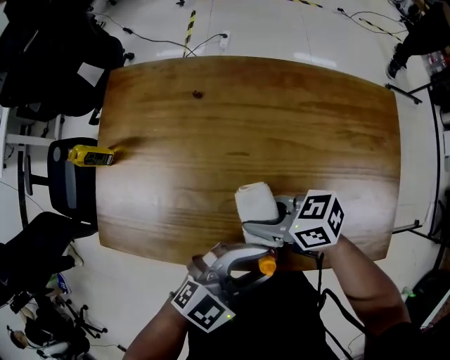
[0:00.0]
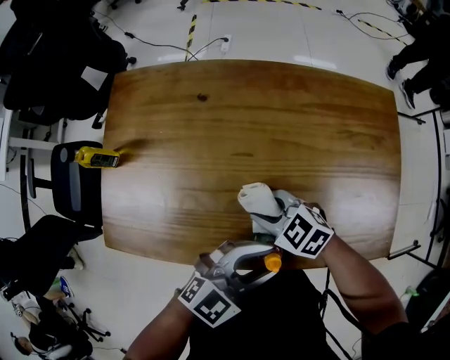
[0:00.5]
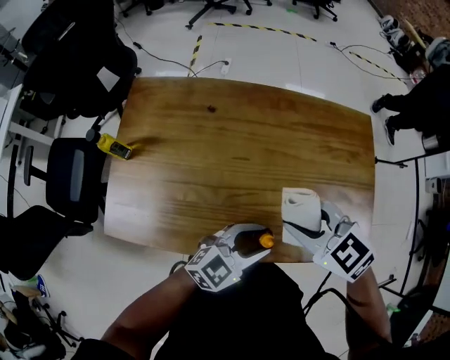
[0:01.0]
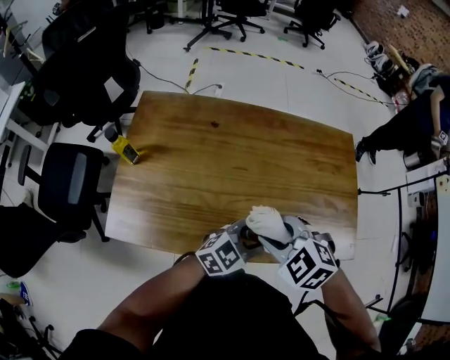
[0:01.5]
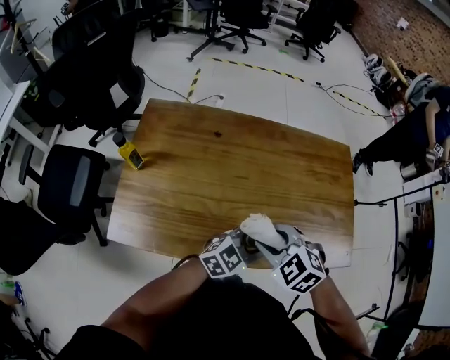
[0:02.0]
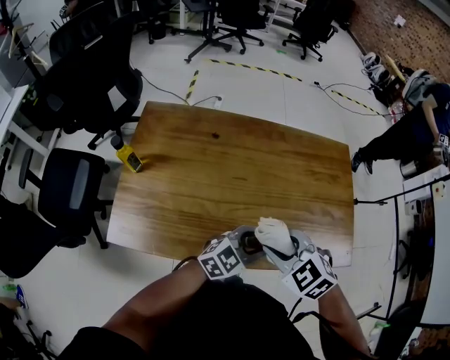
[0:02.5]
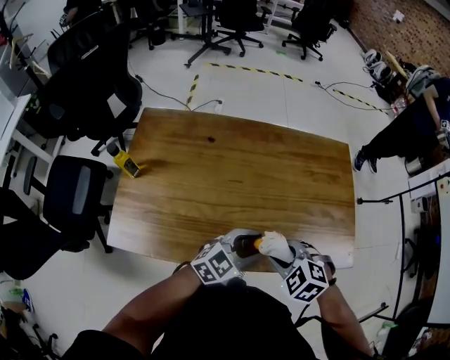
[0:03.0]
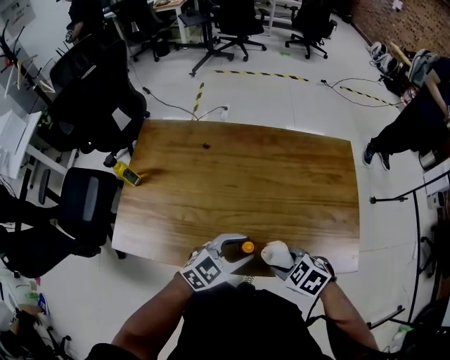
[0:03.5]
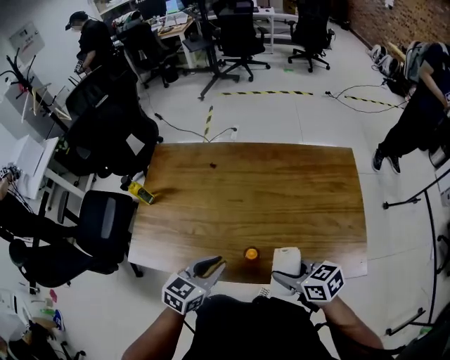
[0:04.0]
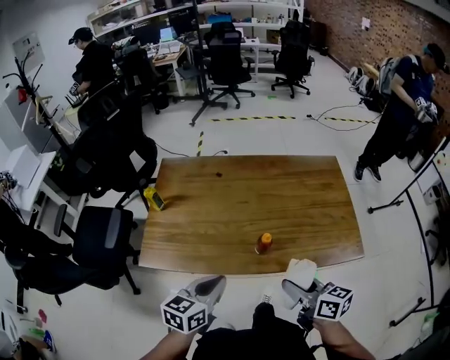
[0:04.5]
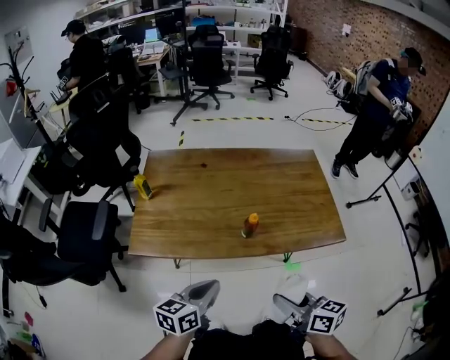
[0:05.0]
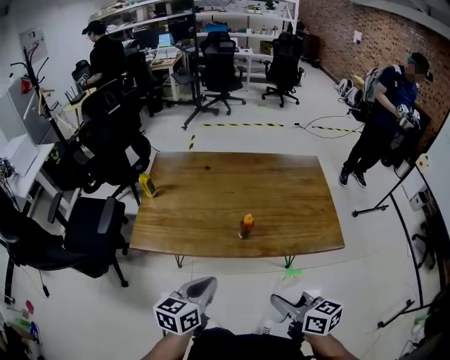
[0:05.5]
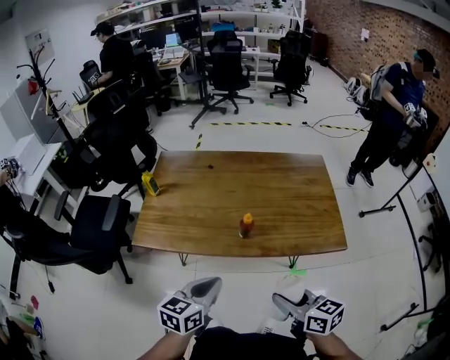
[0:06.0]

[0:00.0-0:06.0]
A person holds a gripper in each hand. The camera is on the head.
0:00.0 to 0:02.0: The right gripper goes up and down, about 20 cm each way, reversing 2 times, and swivels roughly 60 degrees.
0:02.0 to 0:04.0: The left gripper shifts by roughly 10 cm, and swivels approximately 40 degrees. The right gripper reaches about 10 cm downward, then returns, and twists some 40 degrees clockwise, seen from behind.
0:04.0 to 0:06.0: Both grippers travel together backward, some 20 cm. The right gripper changes its angle by about 20 degrees, while the left gripper closes up.

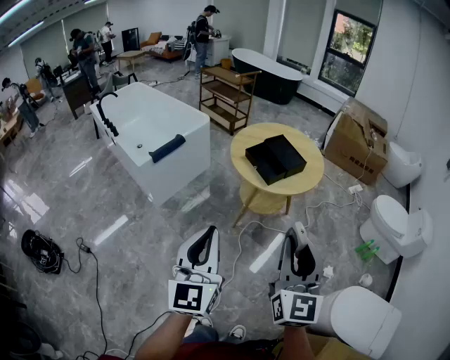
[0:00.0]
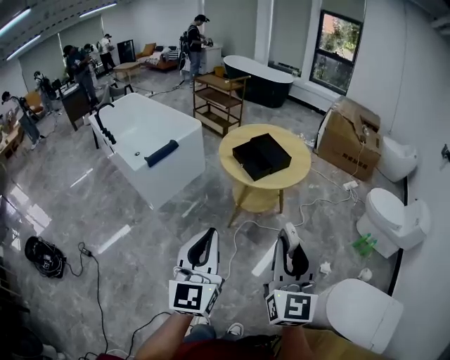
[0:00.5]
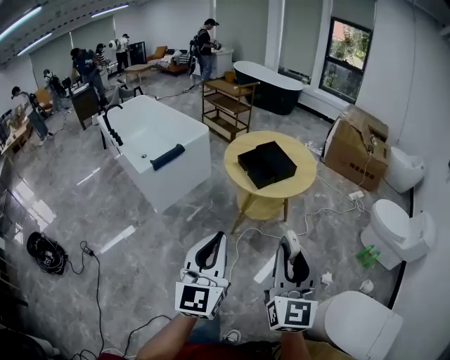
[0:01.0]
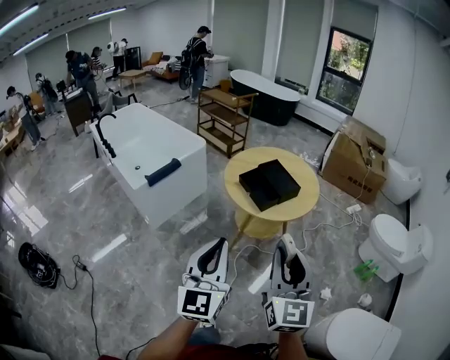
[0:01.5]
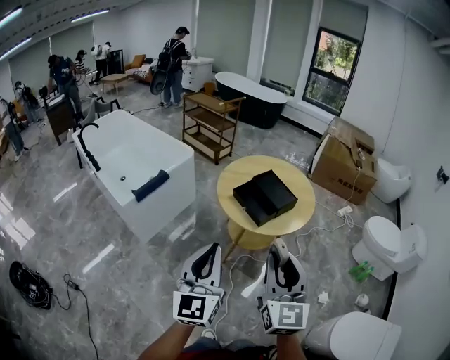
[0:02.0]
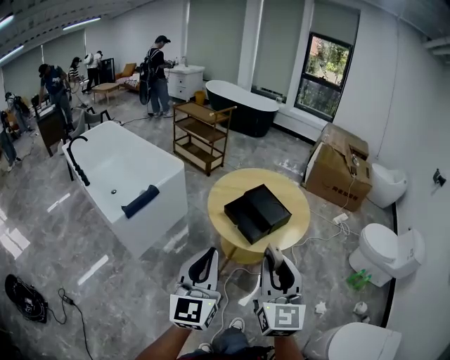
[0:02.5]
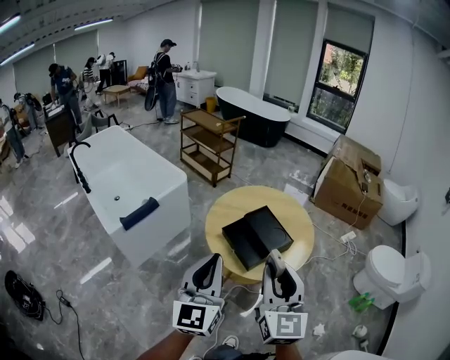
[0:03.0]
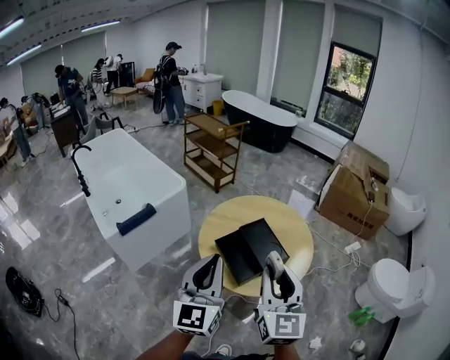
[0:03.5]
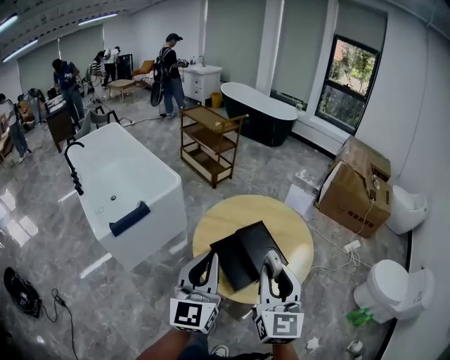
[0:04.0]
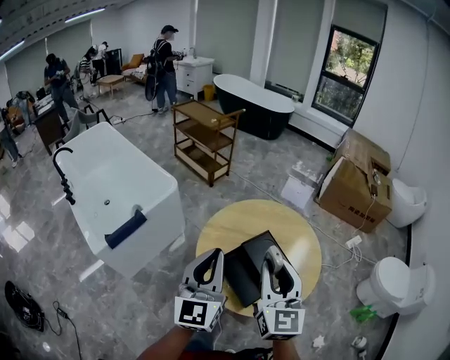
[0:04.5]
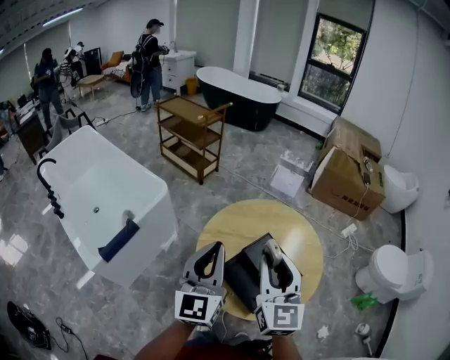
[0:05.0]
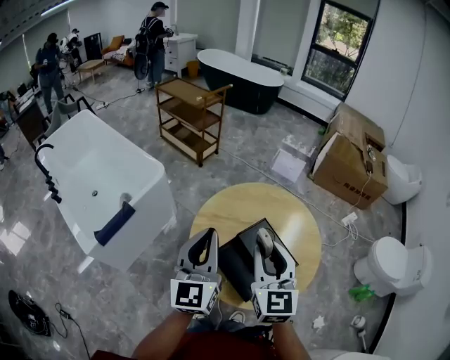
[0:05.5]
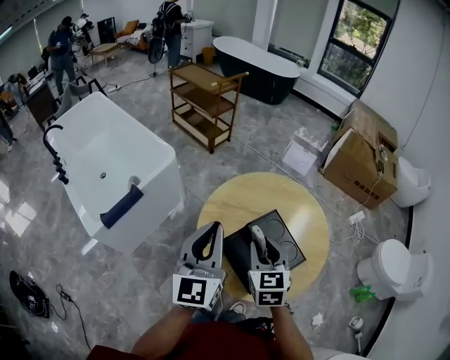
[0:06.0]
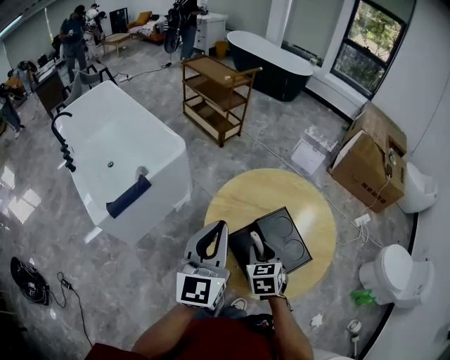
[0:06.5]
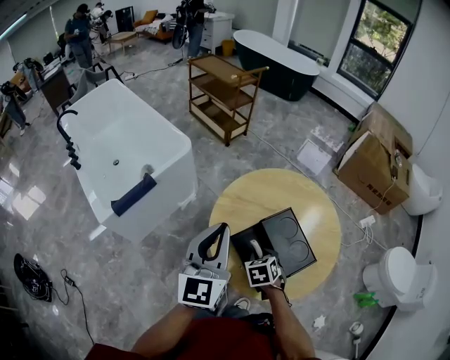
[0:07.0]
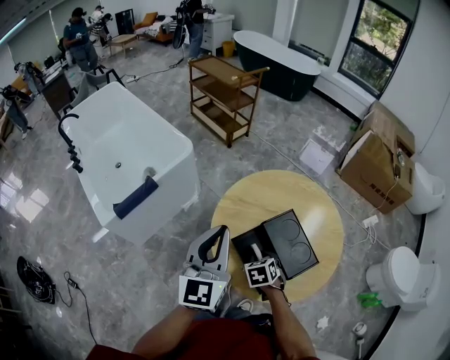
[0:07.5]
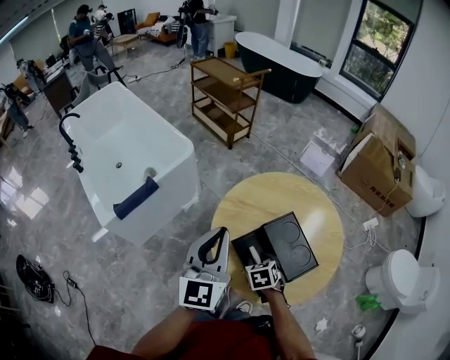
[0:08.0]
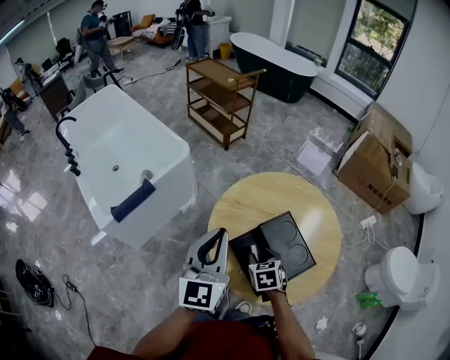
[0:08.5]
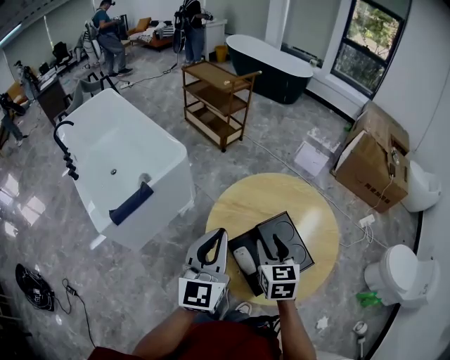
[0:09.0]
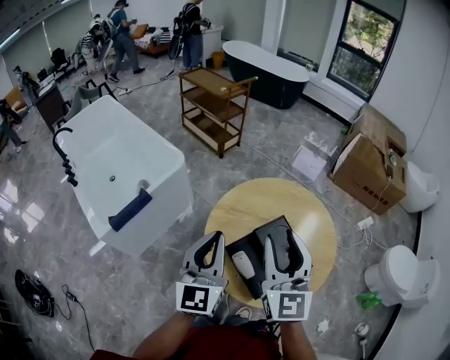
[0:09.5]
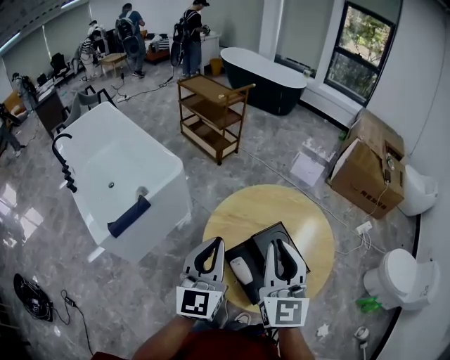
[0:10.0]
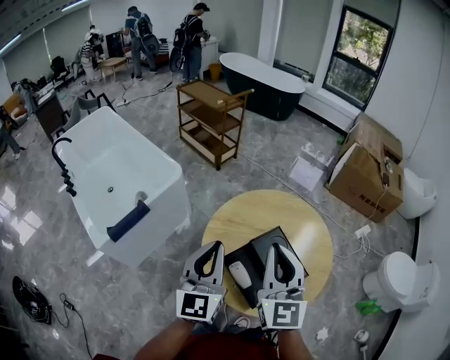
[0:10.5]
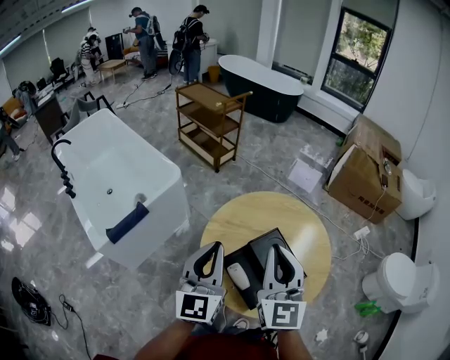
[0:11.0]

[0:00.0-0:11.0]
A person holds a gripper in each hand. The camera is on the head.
0:00.0 to 0:02.0: The grippers both shift forward by about 15 cm.
0:02.0 to 0:03.5: The two grippers go roughly 25 cm forward.
0:03.5 to 0:05.5: The two grippers go roughly 25 cm forward.
0:05.5 to 0:07.5: The right gripper moves downward, some 30 cm, and points its fingers roughly 50 degrees further downward.
0:07.5 to 0:09.0: The right gripper heads upward, covering approximately 20 cm, and angles its fingers upward, by some 30 degrees.
0:09.0 to 0:11.0: The right gripper shifts about 15 cm upward, angles its fingers upward, by some 30 degrees, and closes.

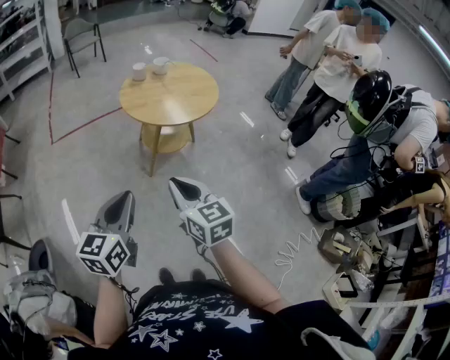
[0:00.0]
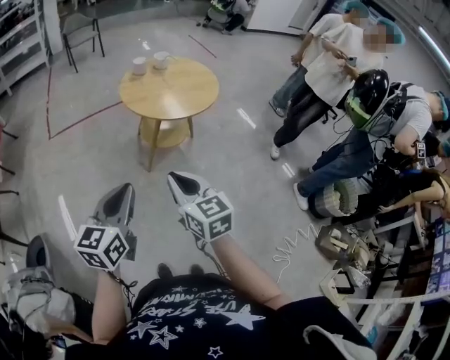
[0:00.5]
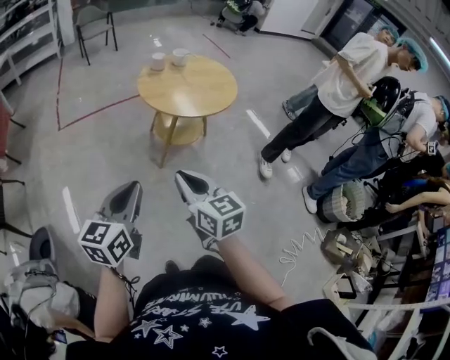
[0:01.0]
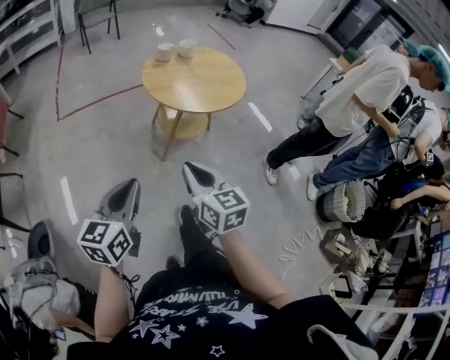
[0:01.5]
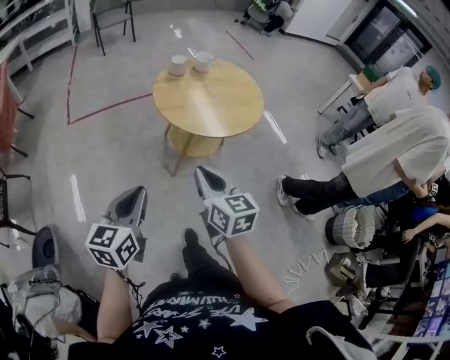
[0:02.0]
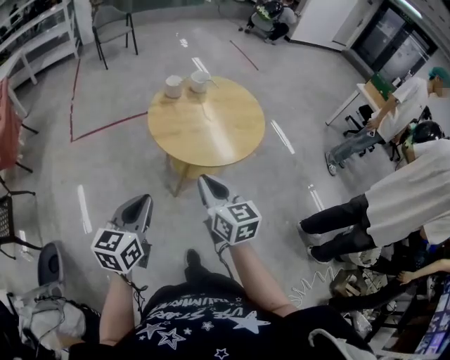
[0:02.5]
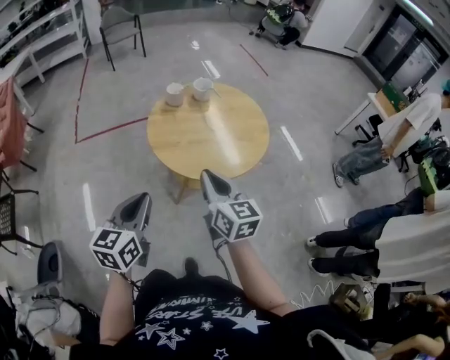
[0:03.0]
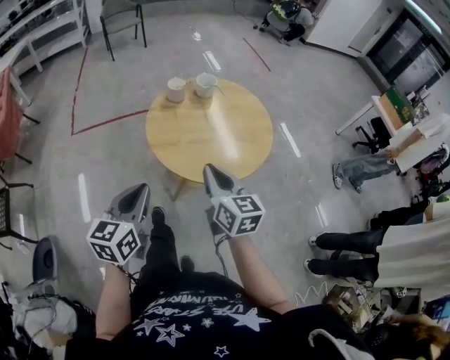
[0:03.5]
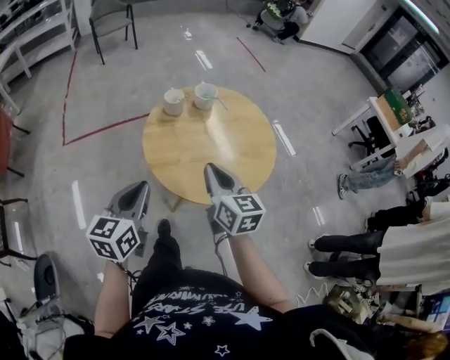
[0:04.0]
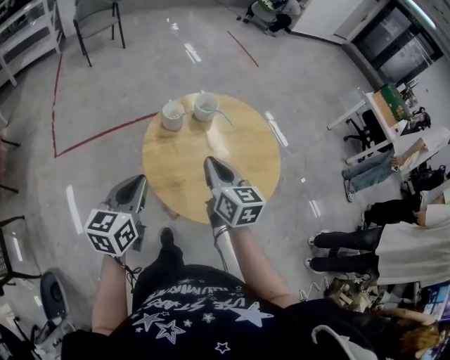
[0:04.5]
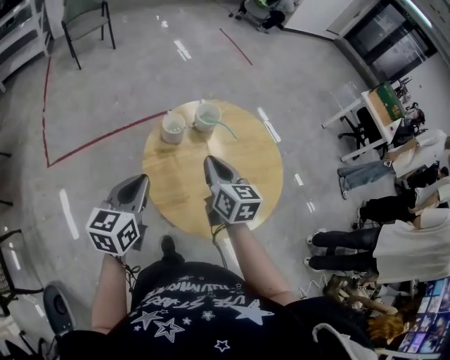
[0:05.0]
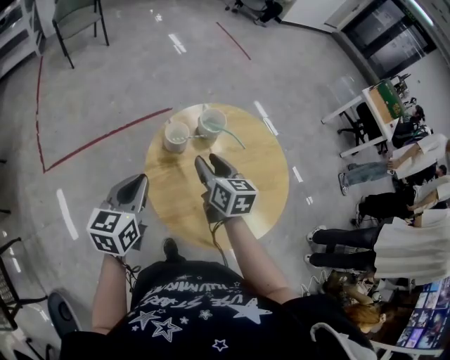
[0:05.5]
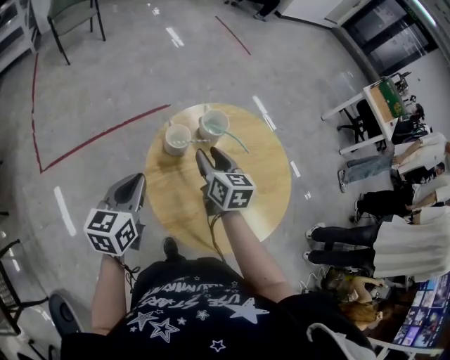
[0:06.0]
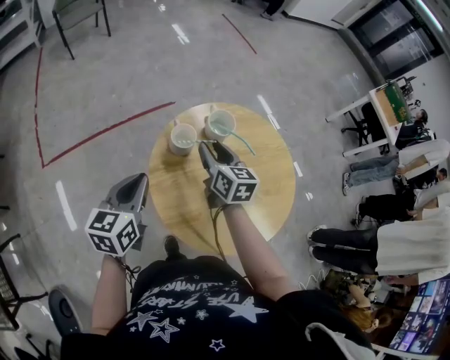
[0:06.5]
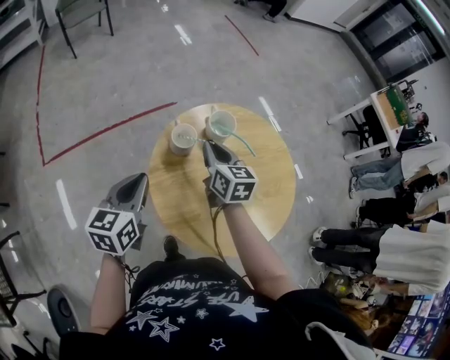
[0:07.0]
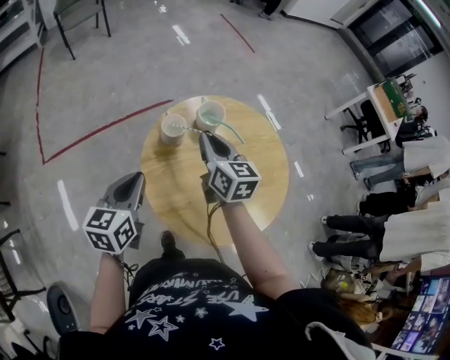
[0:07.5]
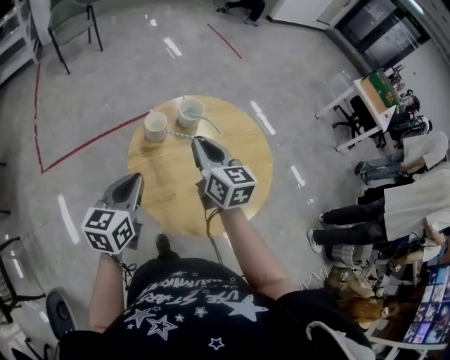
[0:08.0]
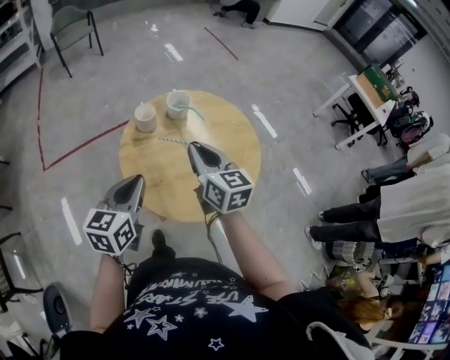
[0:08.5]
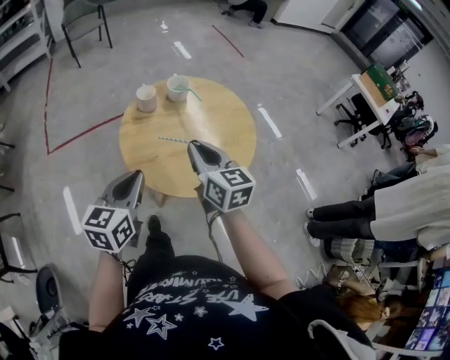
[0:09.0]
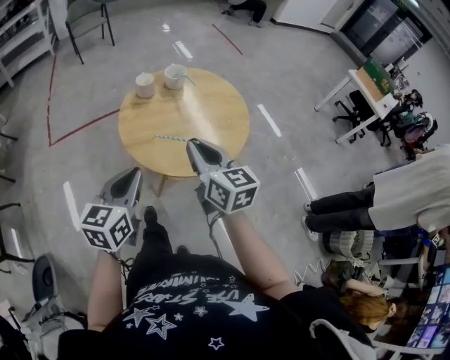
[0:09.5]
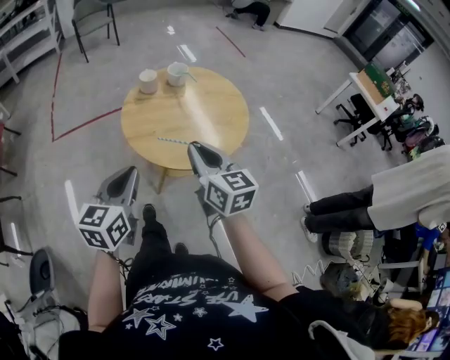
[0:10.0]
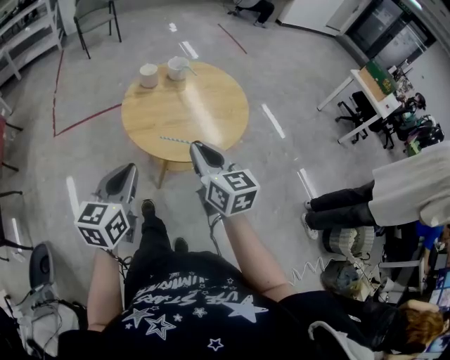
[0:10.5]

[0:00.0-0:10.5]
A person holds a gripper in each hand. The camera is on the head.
0:00.0 to 0:02.0: The left gripper goes about 20 cm forward and to the left, while the right gripper moves forward, some 20 cm.
0:02.0 to 0:04.0: Both grippers move forward, some 35 cm.
0:04.0 to 0:06.5: The right gripper is displaced forward by roughly 35 cm, and opens its fingers. The left gripper travels forward and to the left by roughly 35 cm.
0:06.5 to 0:08.5: The right gripper heads backward, to the right and upward, covering roughly 25 cm, and closes, while the left gripper travels backward and to the right by about 20 cm.
0:08.5 to 0:10.5: Both grippers travel together backward, about 25 cm.
